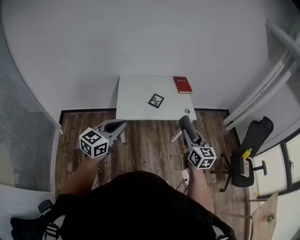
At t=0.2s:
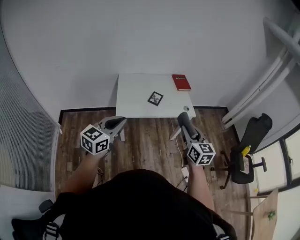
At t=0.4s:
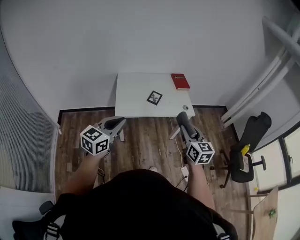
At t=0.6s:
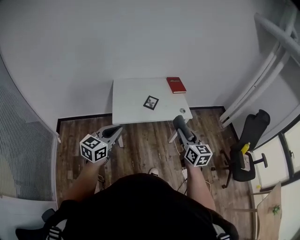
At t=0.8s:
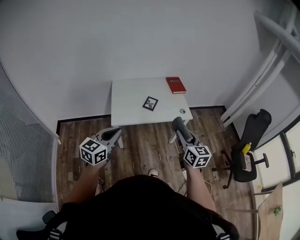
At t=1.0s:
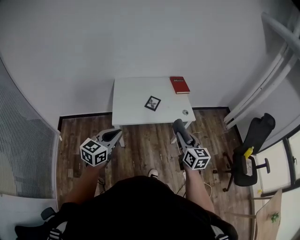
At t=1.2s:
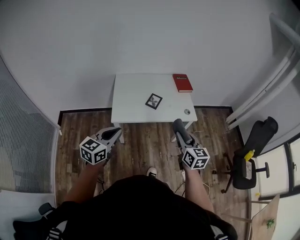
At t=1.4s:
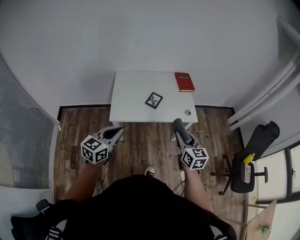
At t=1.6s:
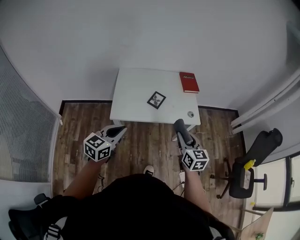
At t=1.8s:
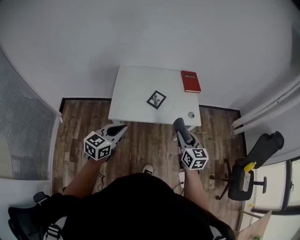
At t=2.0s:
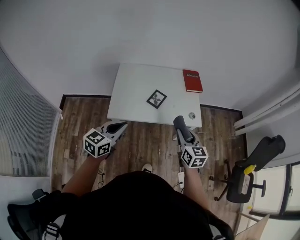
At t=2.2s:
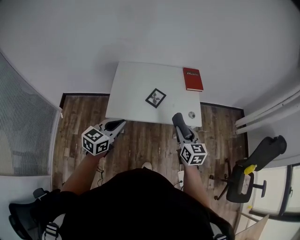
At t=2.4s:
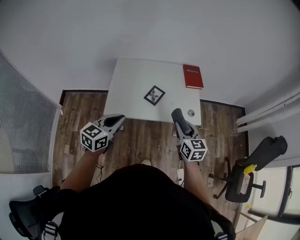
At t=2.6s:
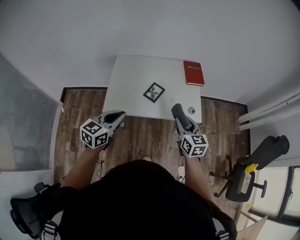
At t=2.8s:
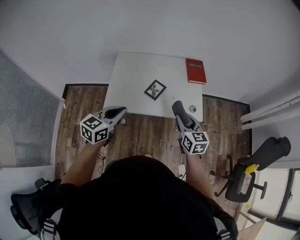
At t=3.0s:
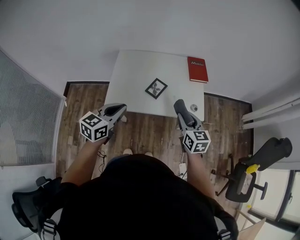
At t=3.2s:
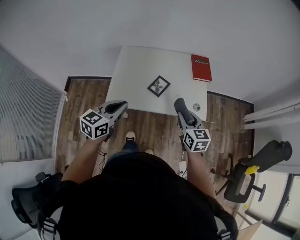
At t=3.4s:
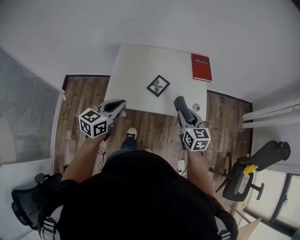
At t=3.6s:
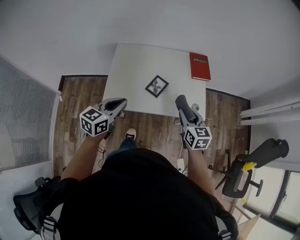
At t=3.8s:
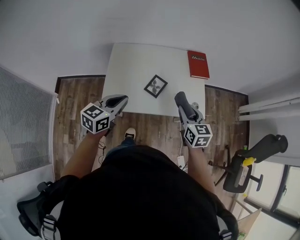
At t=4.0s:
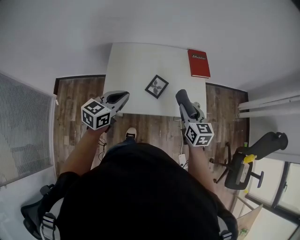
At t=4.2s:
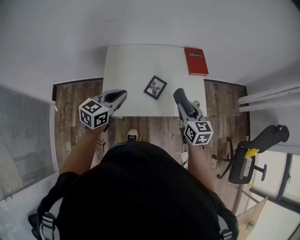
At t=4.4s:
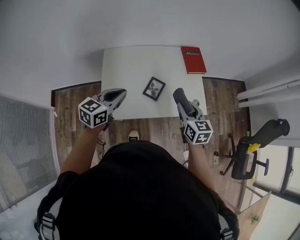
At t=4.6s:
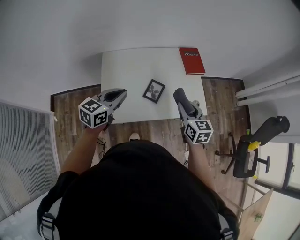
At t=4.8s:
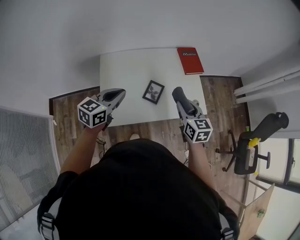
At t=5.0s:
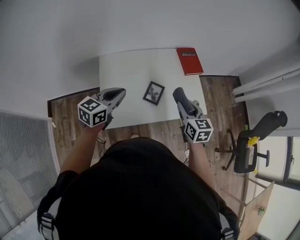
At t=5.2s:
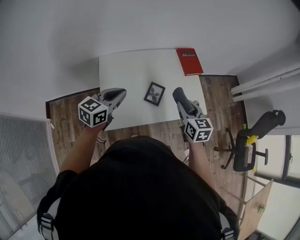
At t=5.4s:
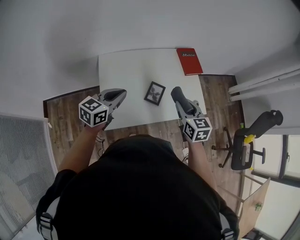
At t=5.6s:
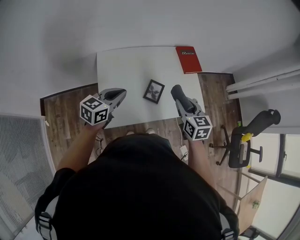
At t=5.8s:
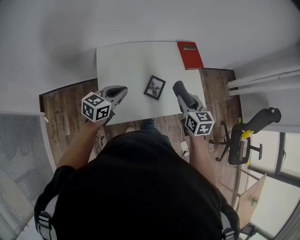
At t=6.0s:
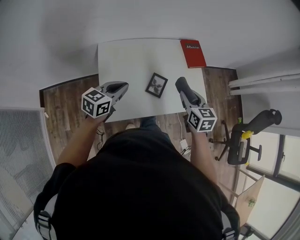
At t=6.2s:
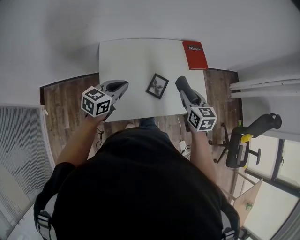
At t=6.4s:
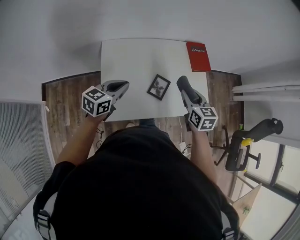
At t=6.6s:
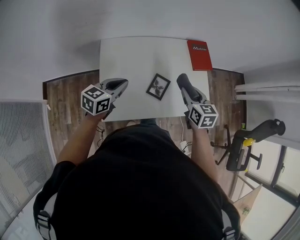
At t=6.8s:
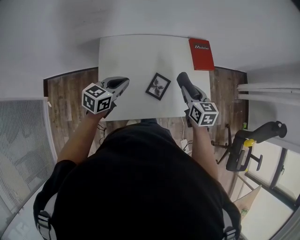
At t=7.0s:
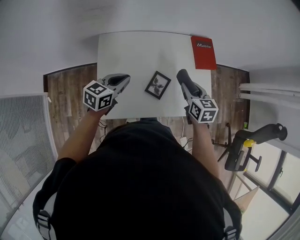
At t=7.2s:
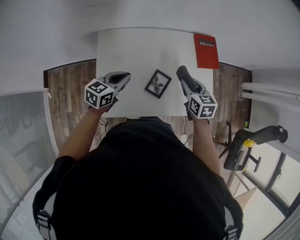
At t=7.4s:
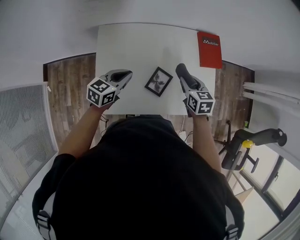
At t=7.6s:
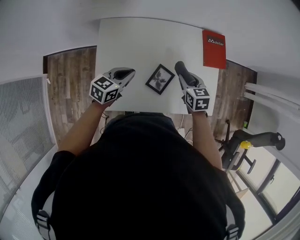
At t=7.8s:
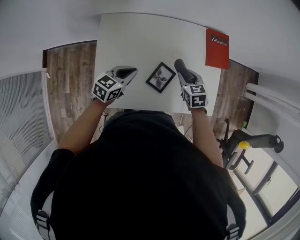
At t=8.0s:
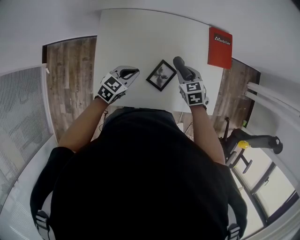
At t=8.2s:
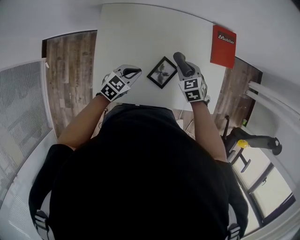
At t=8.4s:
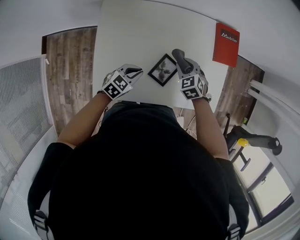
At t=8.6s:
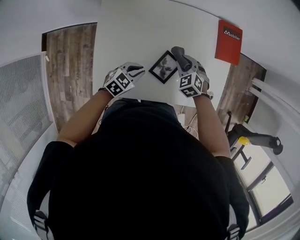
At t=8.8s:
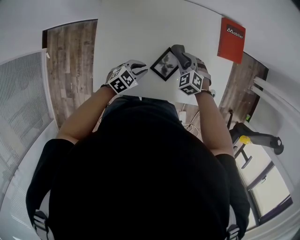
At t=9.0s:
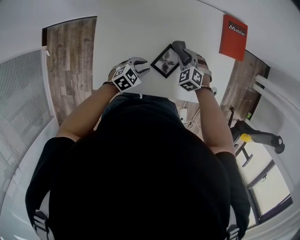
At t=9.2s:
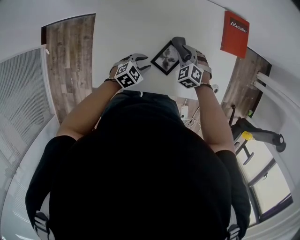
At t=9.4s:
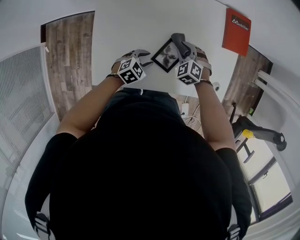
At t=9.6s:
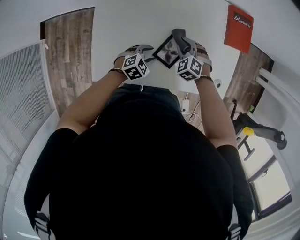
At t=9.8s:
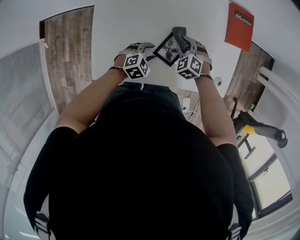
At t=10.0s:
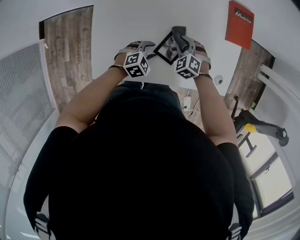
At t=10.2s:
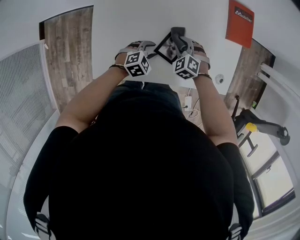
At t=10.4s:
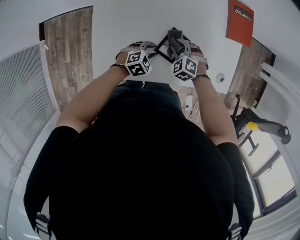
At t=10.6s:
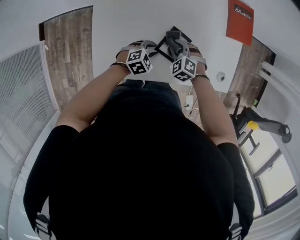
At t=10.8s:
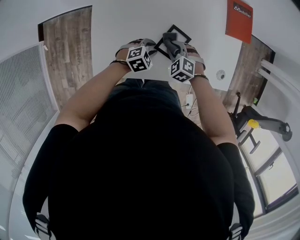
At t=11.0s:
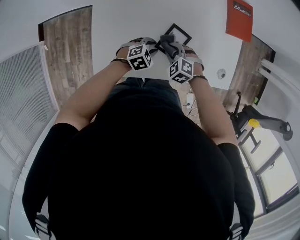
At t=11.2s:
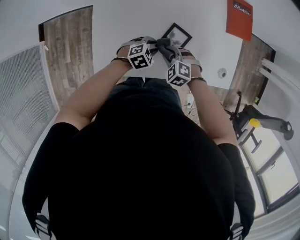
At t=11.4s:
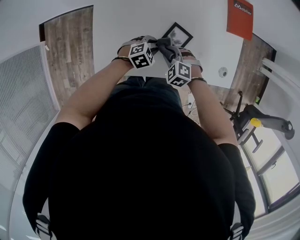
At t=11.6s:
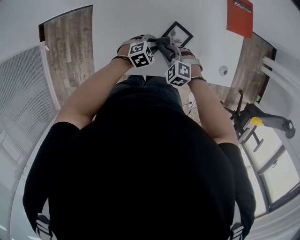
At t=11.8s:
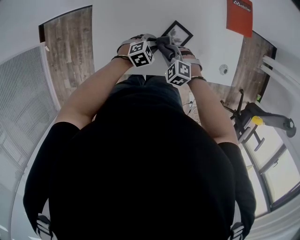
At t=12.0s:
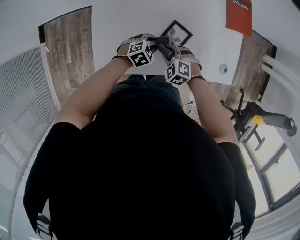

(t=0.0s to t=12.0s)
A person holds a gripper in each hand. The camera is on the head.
t=0.0s - t=1.6s: The grippers both shift forward and downward by roughly 15 cm.
t=1.6s - t=3.0s: The two grippers go approximately 15 cm forward.
t=3.0s - t=4.4s: The right gripper travels forward and to the left by some 10 cm. The left gripper moves forward and to the left, approximately 20 cm.
t=4.4s - t=6.0s: The right gripper shifts roughly 10 cm to the left and forward. The left gripper shifts approximately 10 cm to the left, downward and forward.
t=6.0s - t=7.6s: Both grippers move downward and forward, approximately 20 cm. The right gripper changes its angle by some 20 degrees.
t=7.6s - t=9.0s: The right gripper moves downward, approximately 15 cm, and twists about 50 degrees counterclockwise, seen from behind, while the left gripper moves downward and to the right, roughly 15 cm, rotates some 30 degrees, and opens its fingers.
t=9.0s - t=10.4s: The right gripper shifts roughly 5 cm backward.
t=10.4s - t=12.0s: The right gripper travels backward by approximately 10 cm.

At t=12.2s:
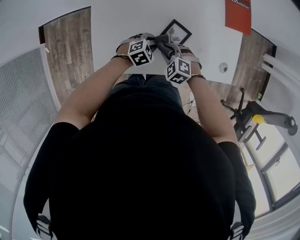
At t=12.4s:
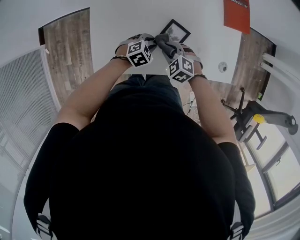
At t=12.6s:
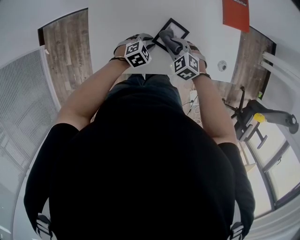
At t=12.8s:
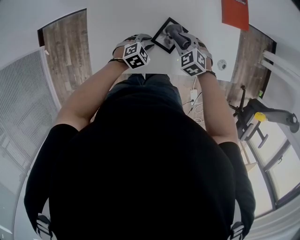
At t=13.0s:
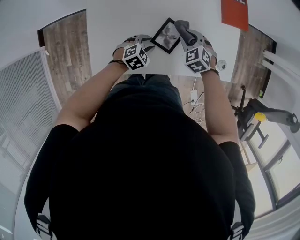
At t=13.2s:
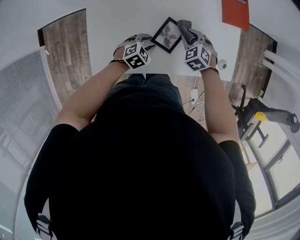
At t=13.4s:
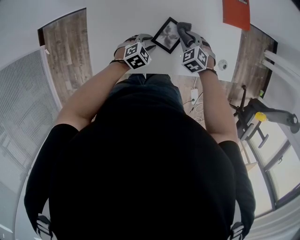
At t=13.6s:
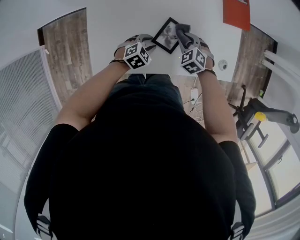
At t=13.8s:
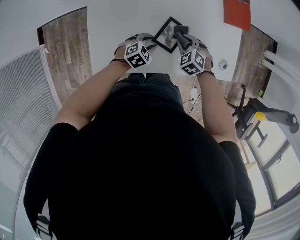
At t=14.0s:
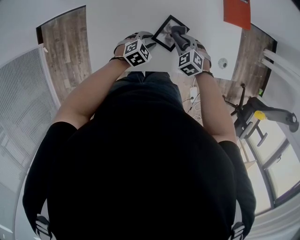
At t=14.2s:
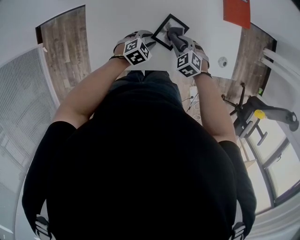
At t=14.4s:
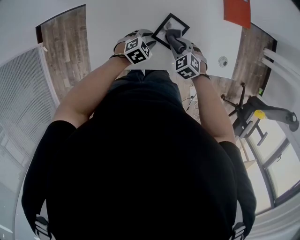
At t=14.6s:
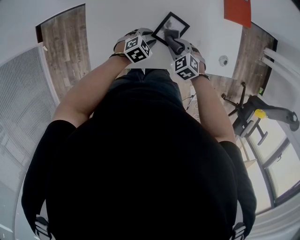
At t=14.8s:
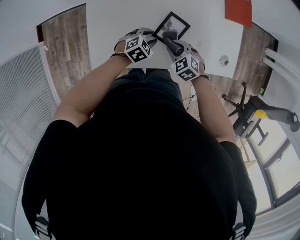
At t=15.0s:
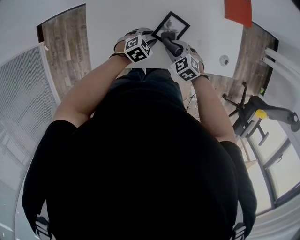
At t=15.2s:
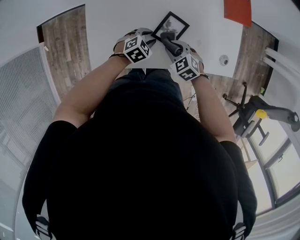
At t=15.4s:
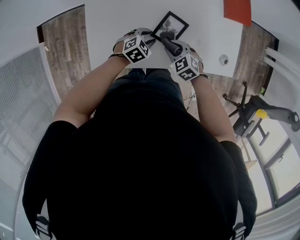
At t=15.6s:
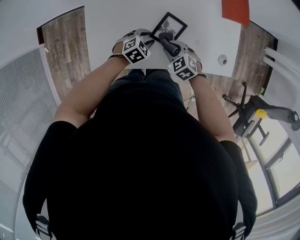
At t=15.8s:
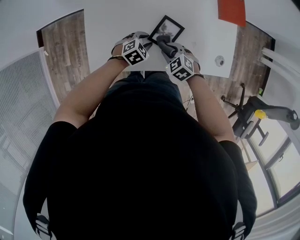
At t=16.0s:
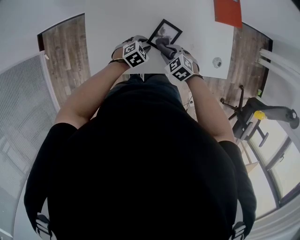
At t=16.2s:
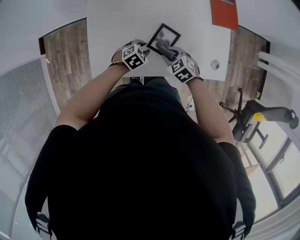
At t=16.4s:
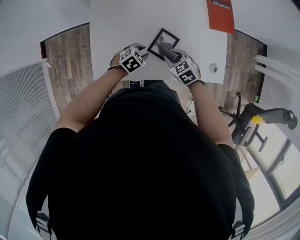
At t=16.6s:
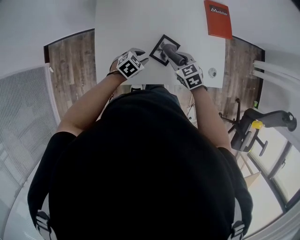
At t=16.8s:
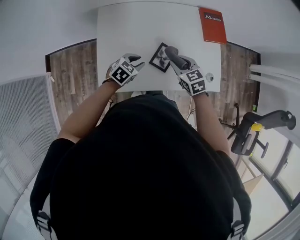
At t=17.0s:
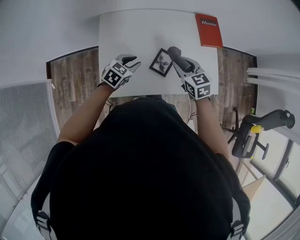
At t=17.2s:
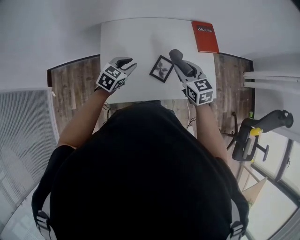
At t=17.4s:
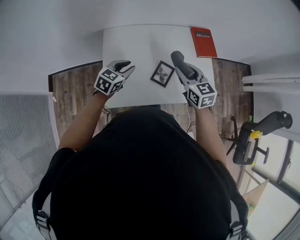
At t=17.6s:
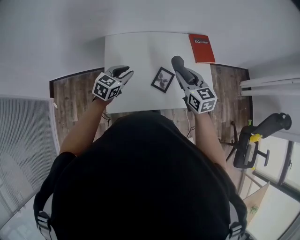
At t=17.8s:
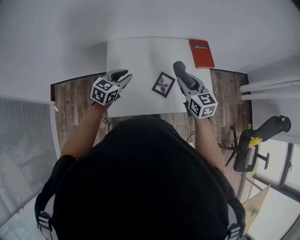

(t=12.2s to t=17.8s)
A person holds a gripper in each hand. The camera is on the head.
t=12.2s - t=13.6s: The right gripper heads forward and to the right, covering roughly 10 cm.
t=13.6s - t=15.0s: The right gripper shifts some 10 cm backward.
t=15.0s - t=16.4s: The right gripper travels upward by some 5 cm.
t=16.4s - t=17.8s: The left gripper moves upward and to the left, some 30 cm, and angles its fingers upward, by about 30 degrees. The right gripper is displaced upward by roughly 25 cm, and tips its fingers upward by approximately 30 degrees.

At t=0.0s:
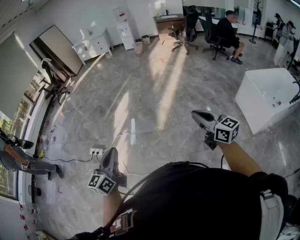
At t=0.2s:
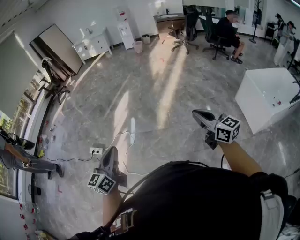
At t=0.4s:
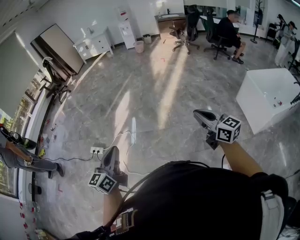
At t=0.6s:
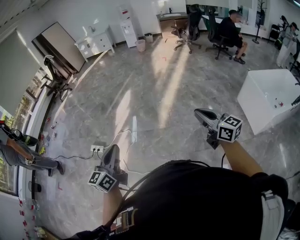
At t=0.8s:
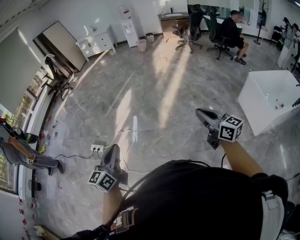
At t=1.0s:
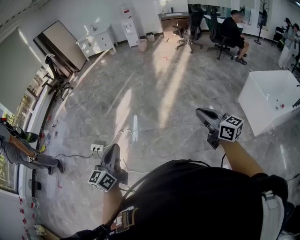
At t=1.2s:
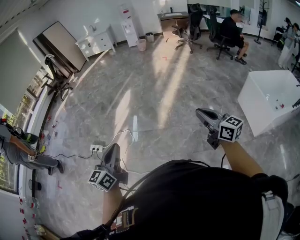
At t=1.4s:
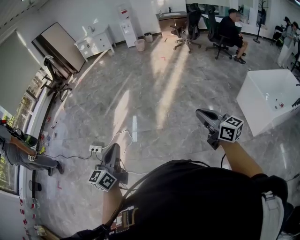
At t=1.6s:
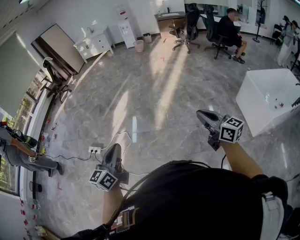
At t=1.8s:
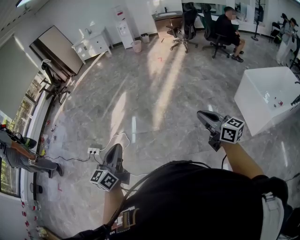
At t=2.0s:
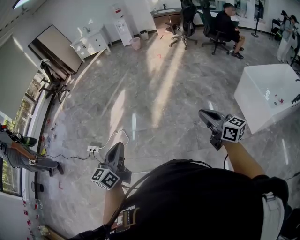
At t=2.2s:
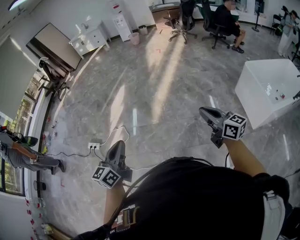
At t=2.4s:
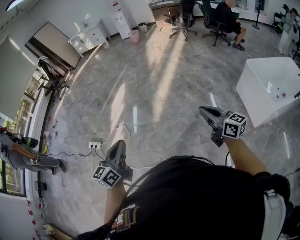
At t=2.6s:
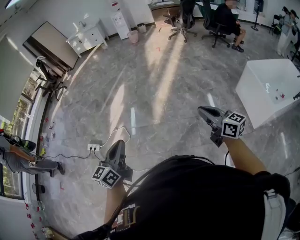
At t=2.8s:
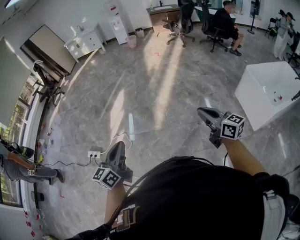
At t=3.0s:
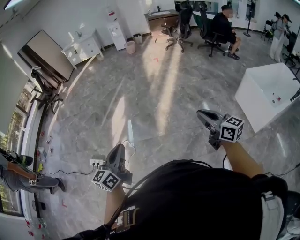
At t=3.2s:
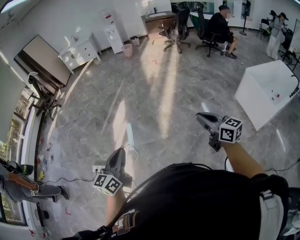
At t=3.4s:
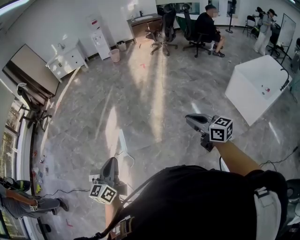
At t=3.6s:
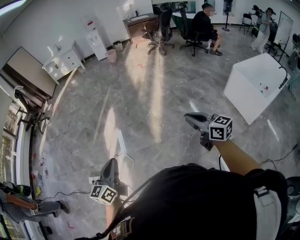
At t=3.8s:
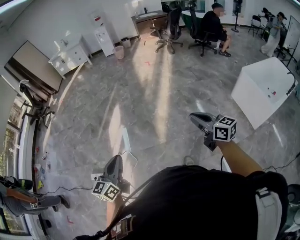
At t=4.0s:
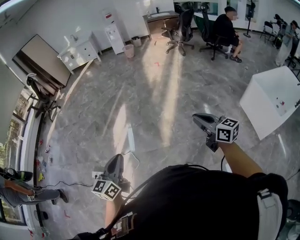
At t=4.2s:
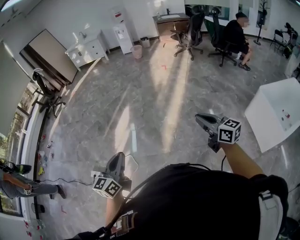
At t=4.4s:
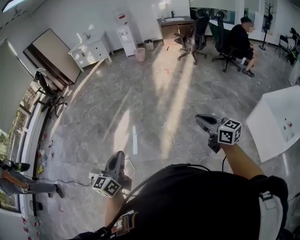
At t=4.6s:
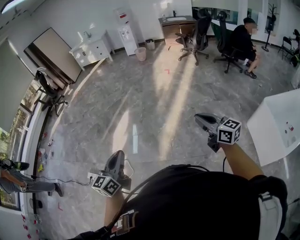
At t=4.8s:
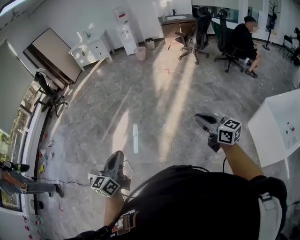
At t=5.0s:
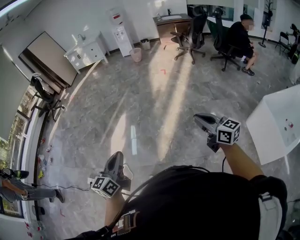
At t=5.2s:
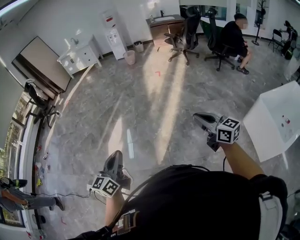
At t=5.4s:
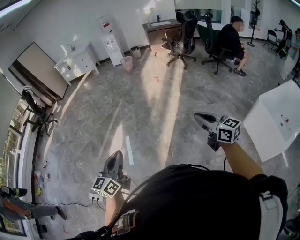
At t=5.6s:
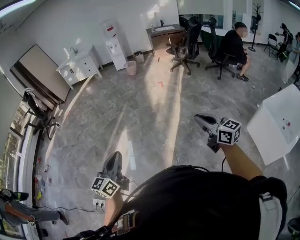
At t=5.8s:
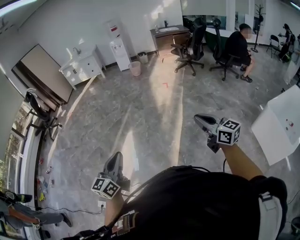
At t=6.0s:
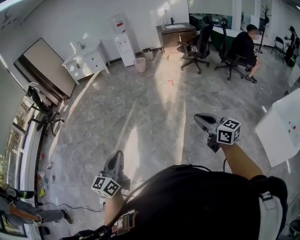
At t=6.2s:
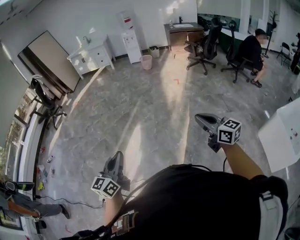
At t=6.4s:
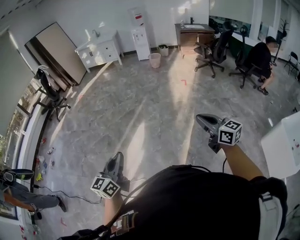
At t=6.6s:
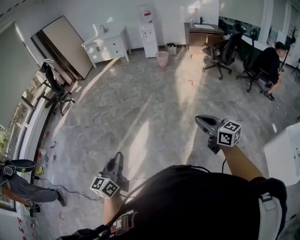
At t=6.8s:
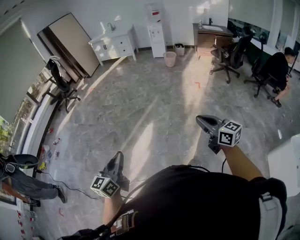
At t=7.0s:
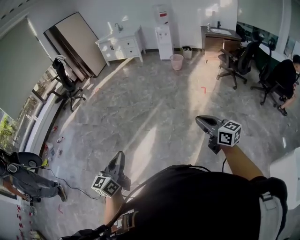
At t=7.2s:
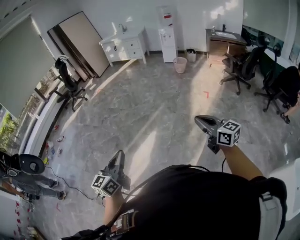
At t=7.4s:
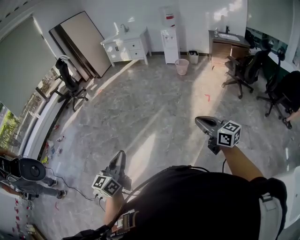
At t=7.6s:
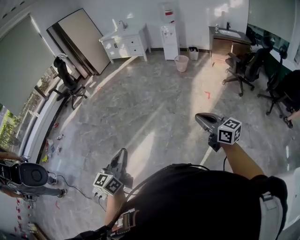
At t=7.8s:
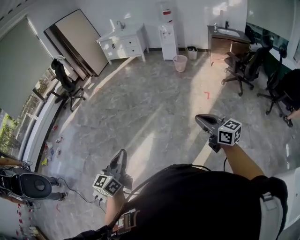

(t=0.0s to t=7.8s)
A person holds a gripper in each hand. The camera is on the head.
t=0.0s - t=1.6s: The grippers both shift to the right by about 10 cm.
t=1.6s - t=3.2s: Both grippers move forward and to the left, some 25 cm.
t=3.2s - t=4.6s: Both grippers travel together forward and to the right, roughly 30 cm.
t=4.6s - t=6.2s: Both grippers travel together forward and to the left, some 35 cm.
t=6.2s - t=7.8s: The left gripper goes approximately 30 cm forward and to the right, while the right gripper travels forward by some 40 cm.
